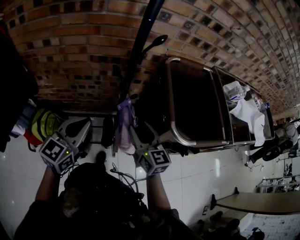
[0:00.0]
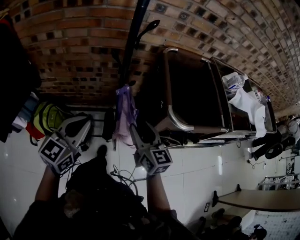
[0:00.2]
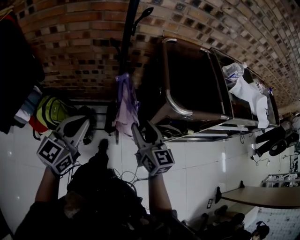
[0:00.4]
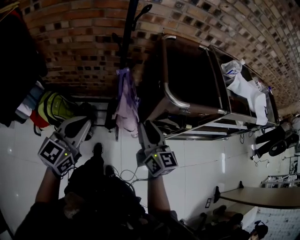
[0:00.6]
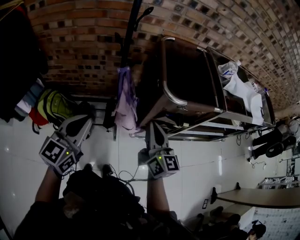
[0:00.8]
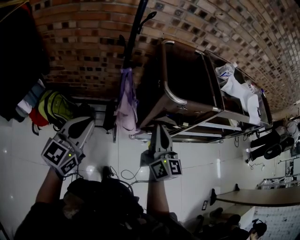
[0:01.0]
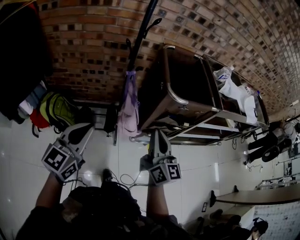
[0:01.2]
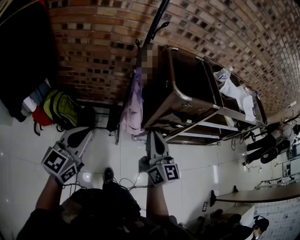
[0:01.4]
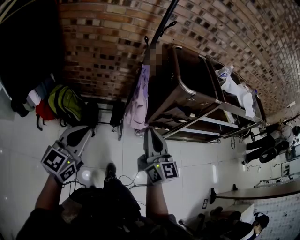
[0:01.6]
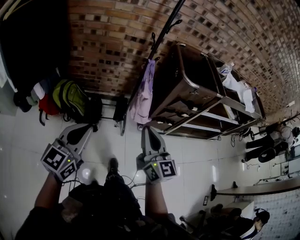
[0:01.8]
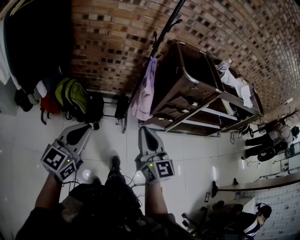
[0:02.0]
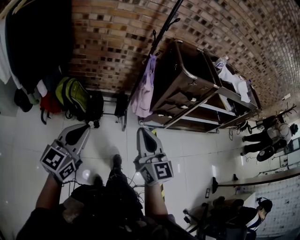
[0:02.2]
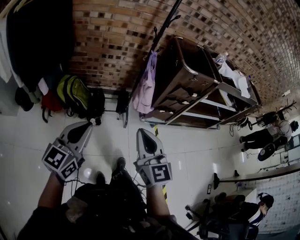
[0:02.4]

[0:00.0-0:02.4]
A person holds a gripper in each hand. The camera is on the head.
0.0 to 1.2 s: The grippers both shift backward by some 25 cm. The right gripper changes its angle by some 20 degrees, and closes.
1.2 to 2.4 s: The grippers both shift backward and to the left by approximately 35 cm. The right gripper turns by some 30 degrees.

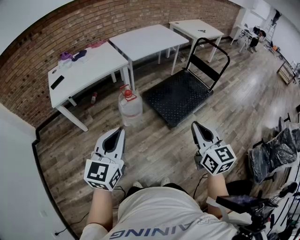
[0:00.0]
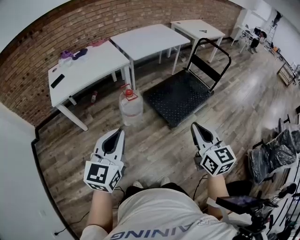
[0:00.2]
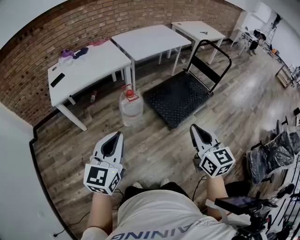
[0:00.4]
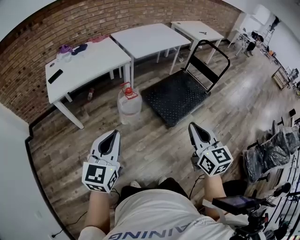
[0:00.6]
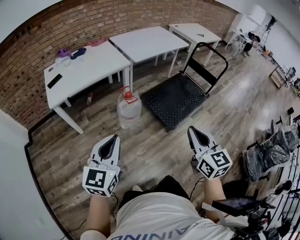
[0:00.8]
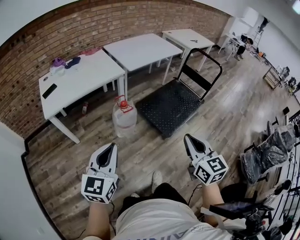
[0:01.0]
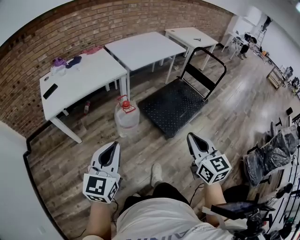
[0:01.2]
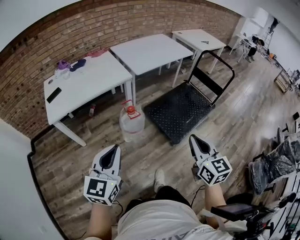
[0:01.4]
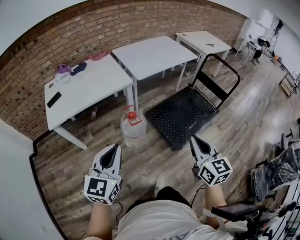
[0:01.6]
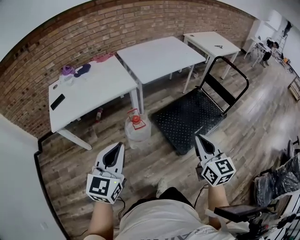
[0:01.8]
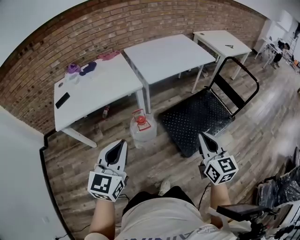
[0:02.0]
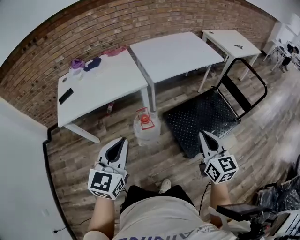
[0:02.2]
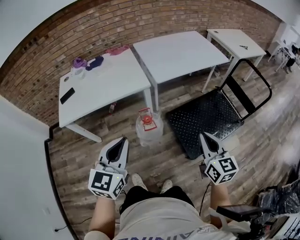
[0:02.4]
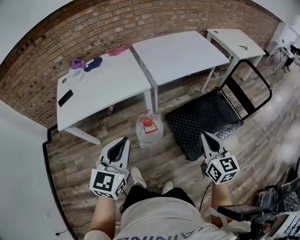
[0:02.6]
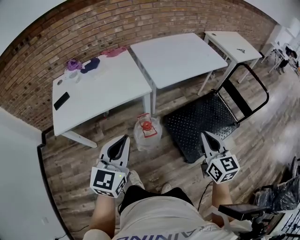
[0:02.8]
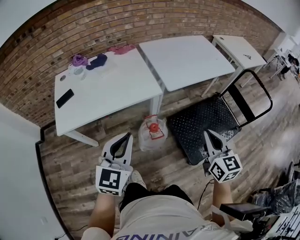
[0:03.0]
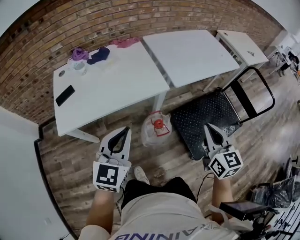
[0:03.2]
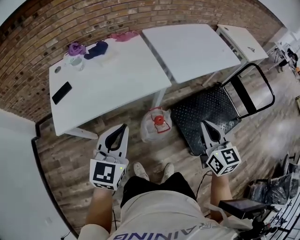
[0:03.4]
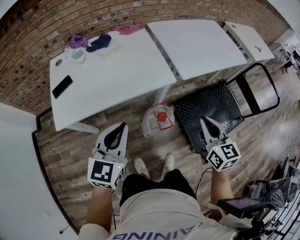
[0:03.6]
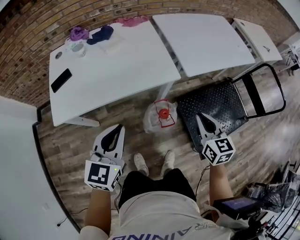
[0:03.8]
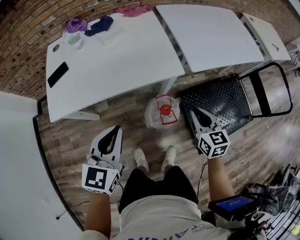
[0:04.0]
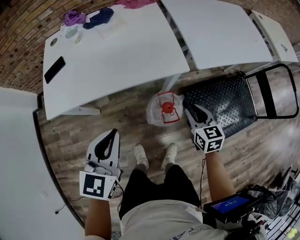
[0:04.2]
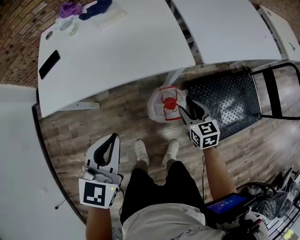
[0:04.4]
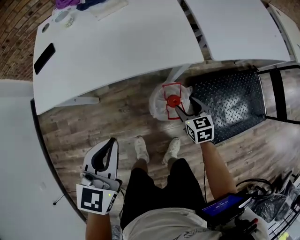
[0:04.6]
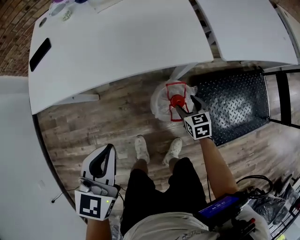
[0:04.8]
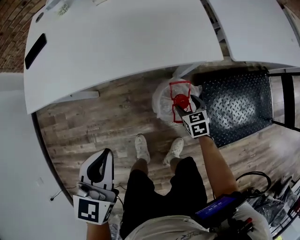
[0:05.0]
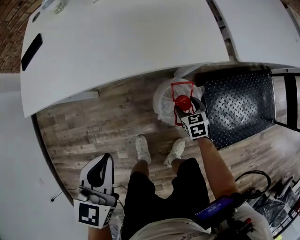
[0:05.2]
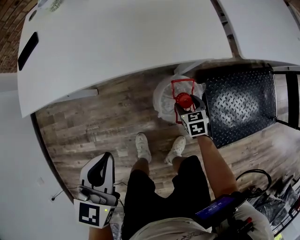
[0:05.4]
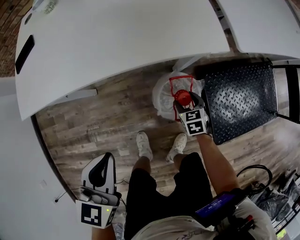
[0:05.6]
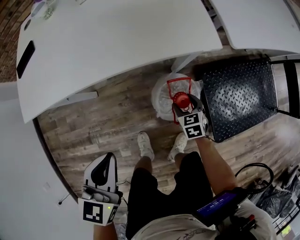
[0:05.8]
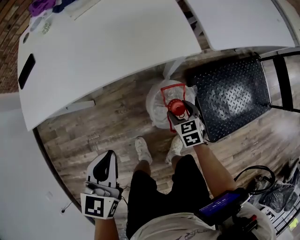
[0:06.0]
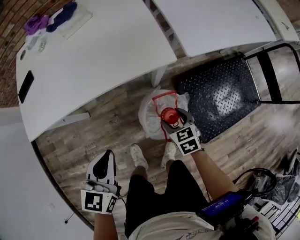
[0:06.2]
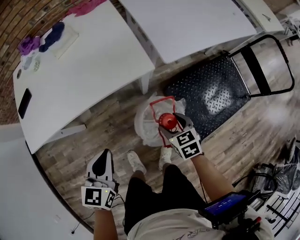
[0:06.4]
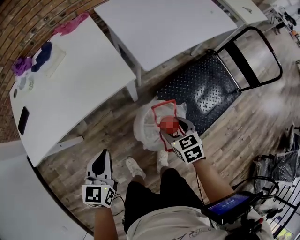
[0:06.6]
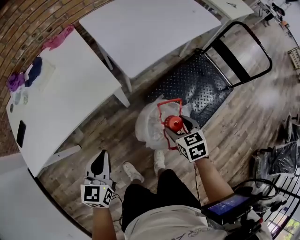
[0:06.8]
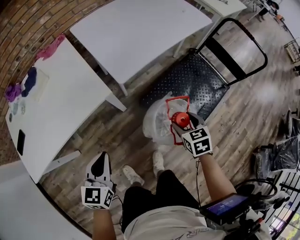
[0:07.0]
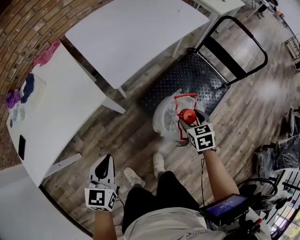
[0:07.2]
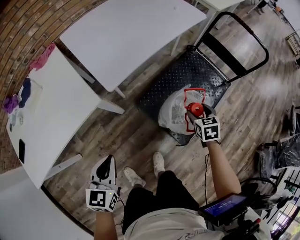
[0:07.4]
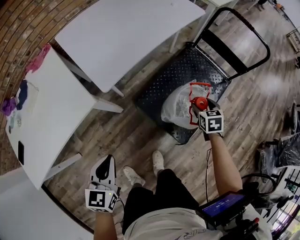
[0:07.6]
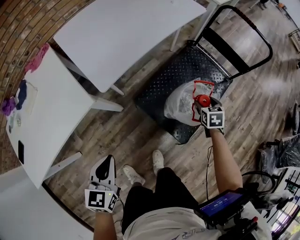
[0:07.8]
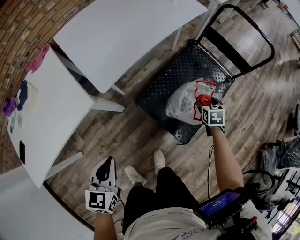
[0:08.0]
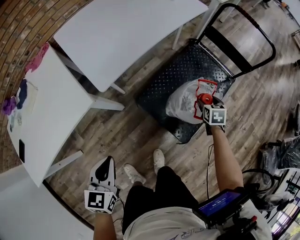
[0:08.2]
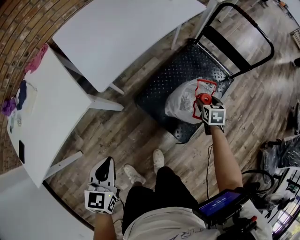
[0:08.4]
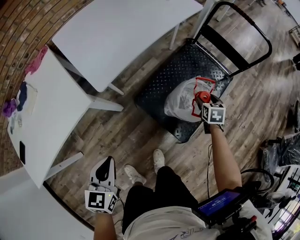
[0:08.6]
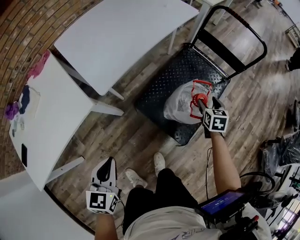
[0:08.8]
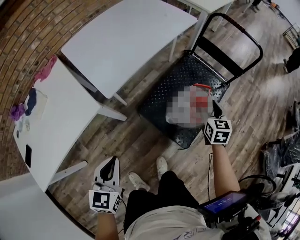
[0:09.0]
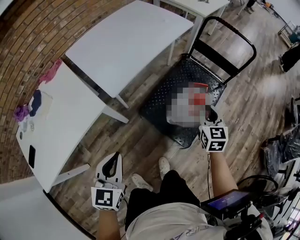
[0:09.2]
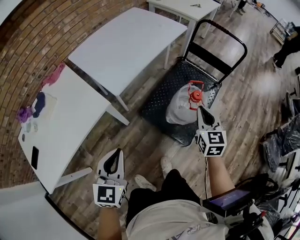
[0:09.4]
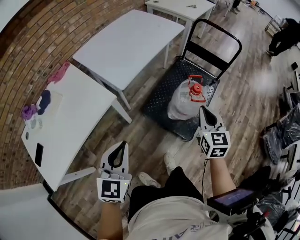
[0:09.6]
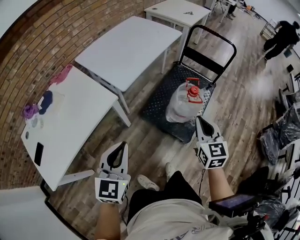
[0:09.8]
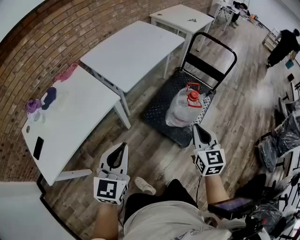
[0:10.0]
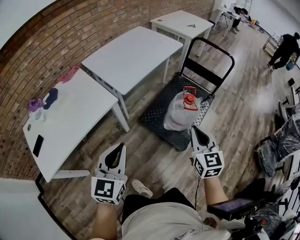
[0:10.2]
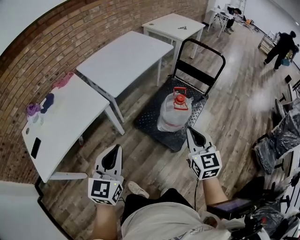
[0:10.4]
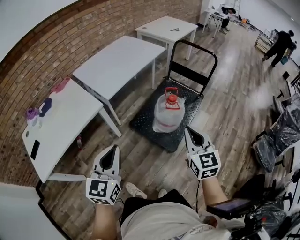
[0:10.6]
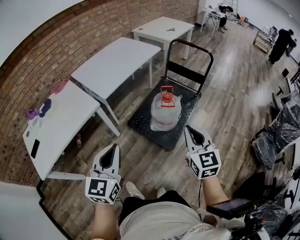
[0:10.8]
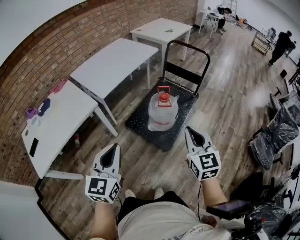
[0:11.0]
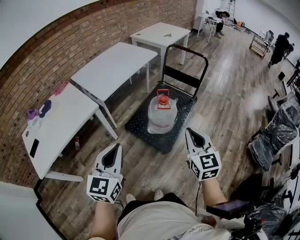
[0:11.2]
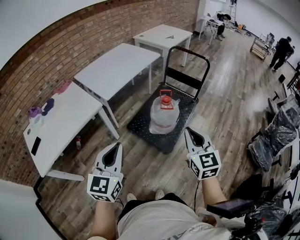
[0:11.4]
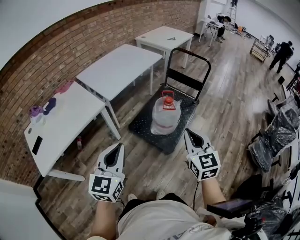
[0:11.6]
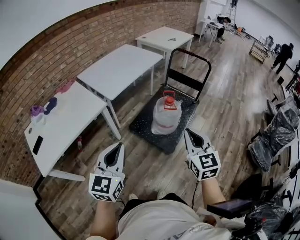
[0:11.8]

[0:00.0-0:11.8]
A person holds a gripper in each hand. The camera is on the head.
0.0 to 1.4 s: Both grippers travel together forward and to the left, approximately 15 cm.
1.4 to 3.0 s: The grippers both shift forward by approximately 30 cm.
3.0 to 4.4 s: The left gripper heads downward, to the left and forward, covering roughly 20 cm. The right gripper moves downward, forward and to the left, roughly 40 cm, swivels some 30 degrees, and opens.
4.4 to 6.0 s: Both grippers move downward, about 15 cm. The right gripper opens.
6.0 to 7.4 s: The right gripper ends up about 50 cm from where it was, and turns by about 40 degrees. The left gripper ends up roughly 25 cm from where it was, and changes its angle by approximately 20 degrees.
7.4 to 8.8 s: The right gripper travels to the right by approximately 10 cm.
8.8 to 10.4 s: The right gripper moves backward and upward, roughly 50 cm, angles its fingers upward, by approximately 30 degrees, and closes its fingers. Meanwhile the left gripper travels upward and backward by approximately 25 cm, and turns by about 20 degrees.
10.4 to 11.8 s: The left gripper travels backward and to the right by about 10 cm. The right gripper goes some 10 cm backward and upward.

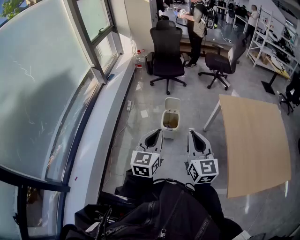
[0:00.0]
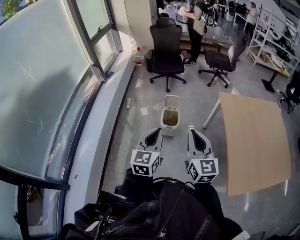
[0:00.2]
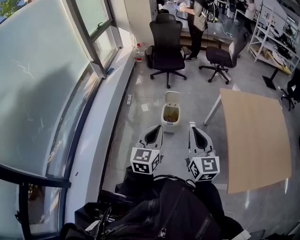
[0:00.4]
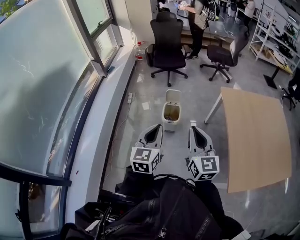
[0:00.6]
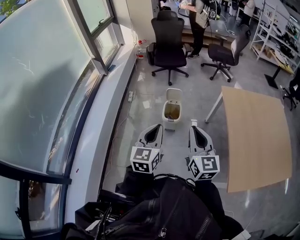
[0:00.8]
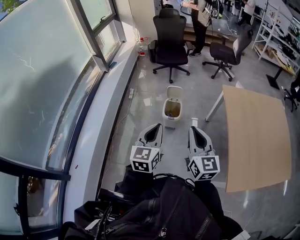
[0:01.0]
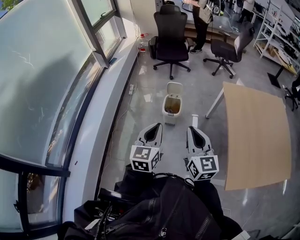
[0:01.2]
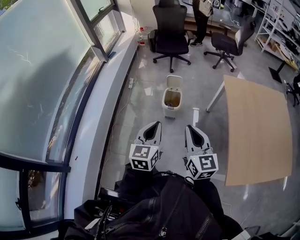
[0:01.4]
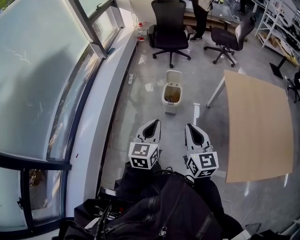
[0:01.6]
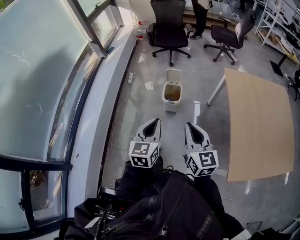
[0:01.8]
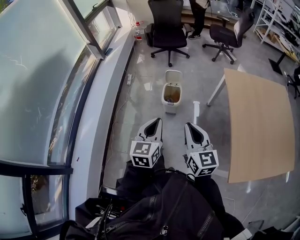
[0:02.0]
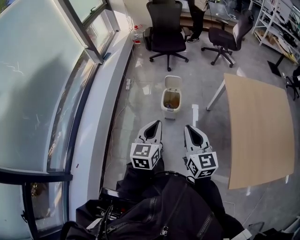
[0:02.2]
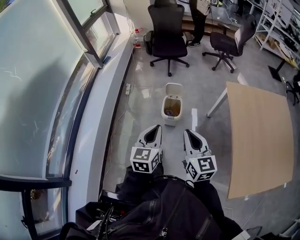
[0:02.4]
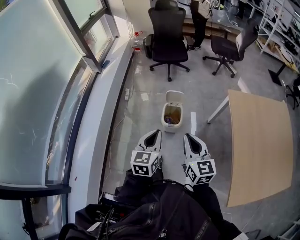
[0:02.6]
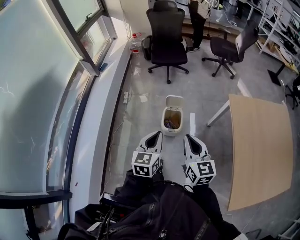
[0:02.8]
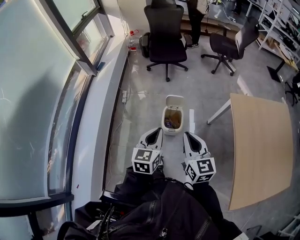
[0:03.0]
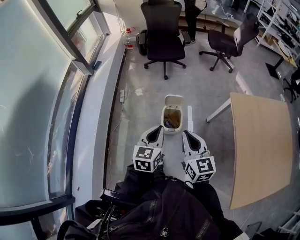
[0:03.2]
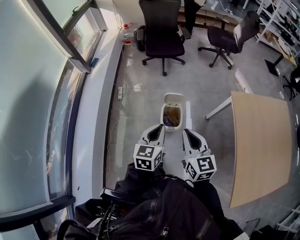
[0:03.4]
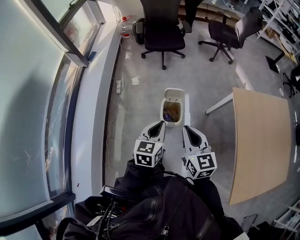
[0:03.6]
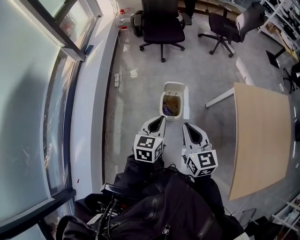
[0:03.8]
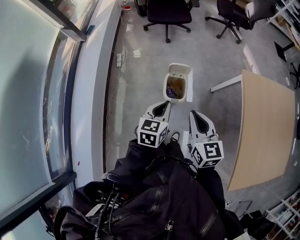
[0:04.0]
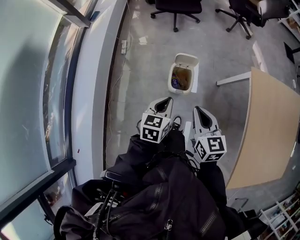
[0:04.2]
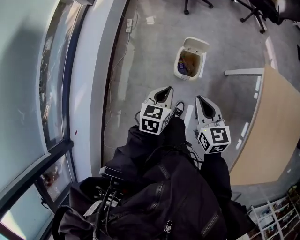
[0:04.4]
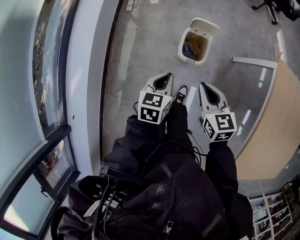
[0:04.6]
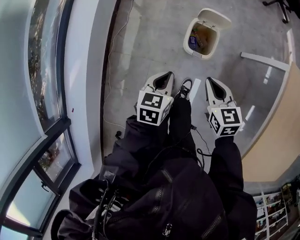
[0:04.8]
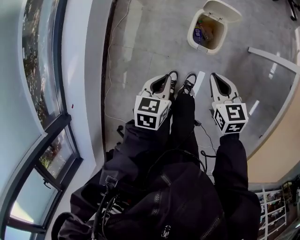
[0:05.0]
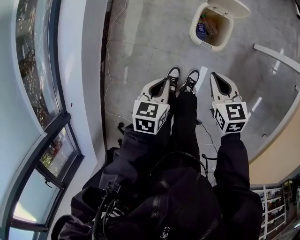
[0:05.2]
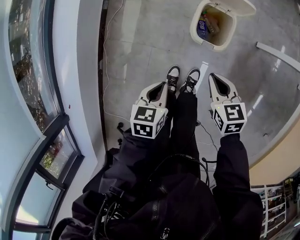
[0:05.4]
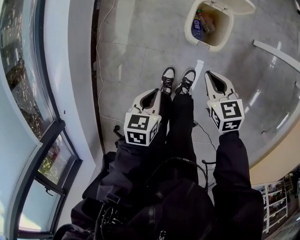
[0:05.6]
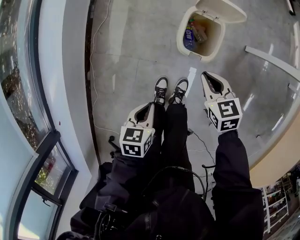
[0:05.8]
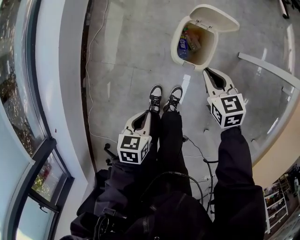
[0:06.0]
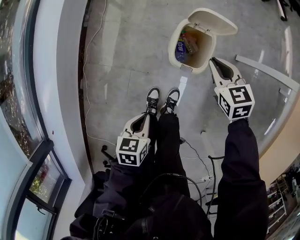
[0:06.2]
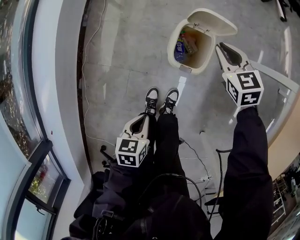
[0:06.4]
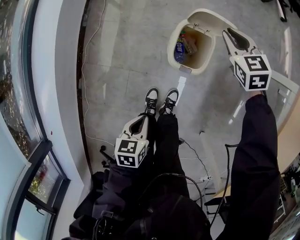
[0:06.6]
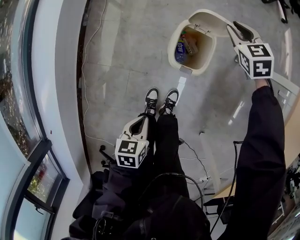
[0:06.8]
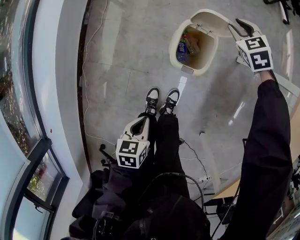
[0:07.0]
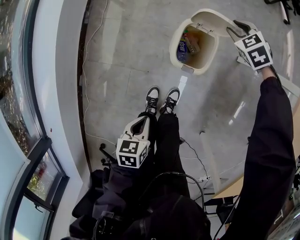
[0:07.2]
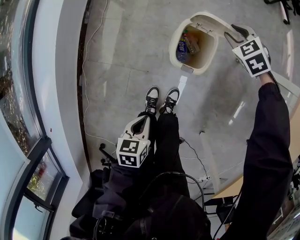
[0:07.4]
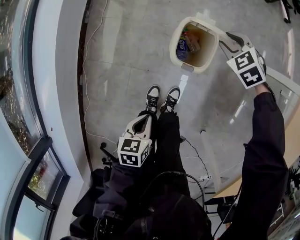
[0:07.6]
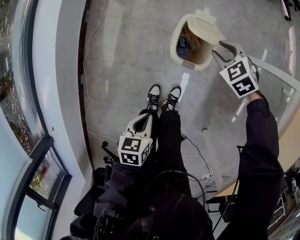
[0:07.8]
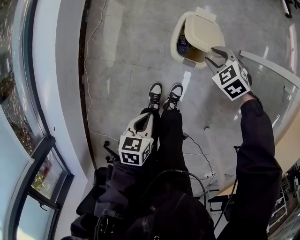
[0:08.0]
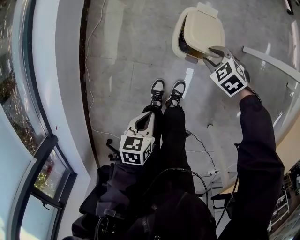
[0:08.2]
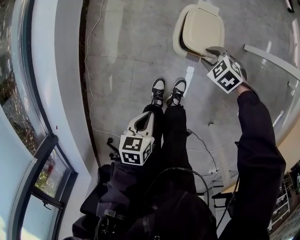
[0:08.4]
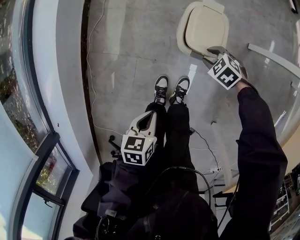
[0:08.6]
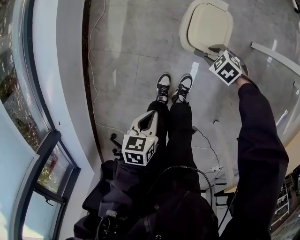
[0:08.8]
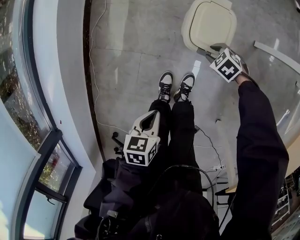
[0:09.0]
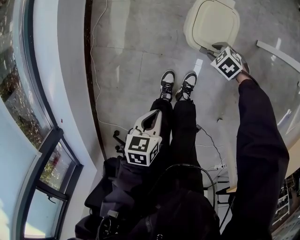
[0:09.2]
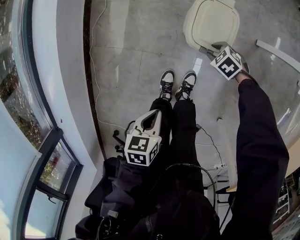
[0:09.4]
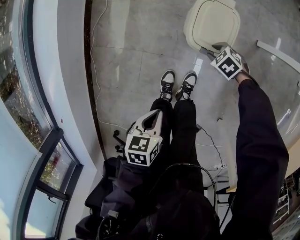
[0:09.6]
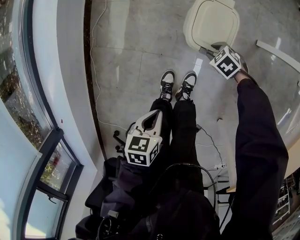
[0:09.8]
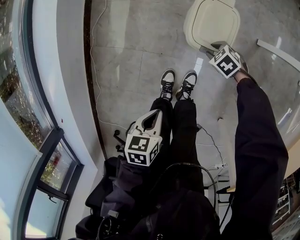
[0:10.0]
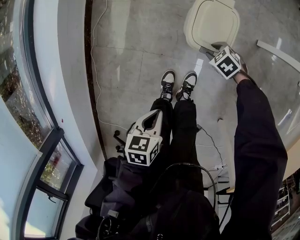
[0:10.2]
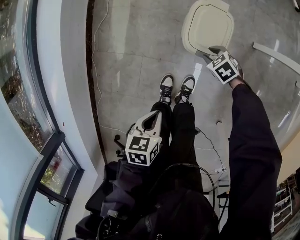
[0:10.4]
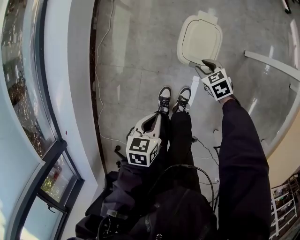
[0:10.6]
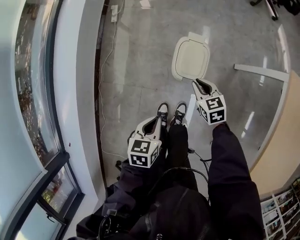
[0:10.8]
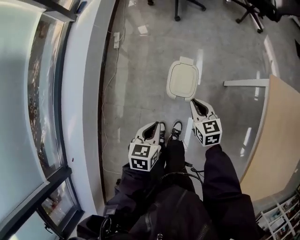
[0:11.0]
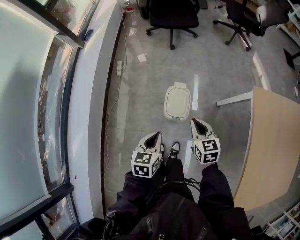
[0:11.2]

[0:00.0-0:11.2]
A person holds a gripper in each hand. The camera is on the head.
0.0 to 1.6 s: The grippers both shift downward by approximately 5 cm.
1.6 to 3.2 s: The grippers both shift forward by some 30 cm.
3.2 to 4.8 s: Both grippers travel together downward, about 30 cm. The right gripper rotates roughly 30 degrees; the left gripper turns by approximately 30 degrees.
4.8 to 6.4 s: The right gripper goes some 25 cm forward and downward; the left gripper is displaced downward and backward by approximately 20 cm.
6.4 to 8.0 s: The right gripper is displaced downward and backward by approximately 10 cm, turns by approximately 30 degrees, and opens its fingers.
8.0 to 9.6 s: The right gripper heads downward, covering about 15 cm.
9.6 to 11.2 s: The right gripper goes roughly 50 cm upward, angles its fingers upward, by roughly 40 degrees, and closes up; the left gripper goes roughly 30 cm upward, and rotates about 30 degrees.
